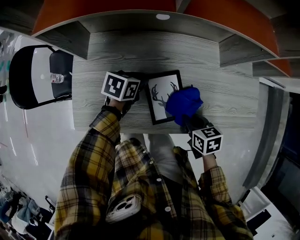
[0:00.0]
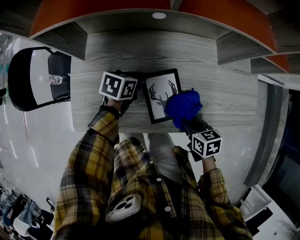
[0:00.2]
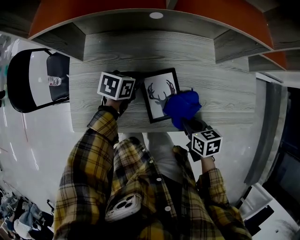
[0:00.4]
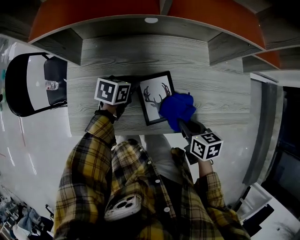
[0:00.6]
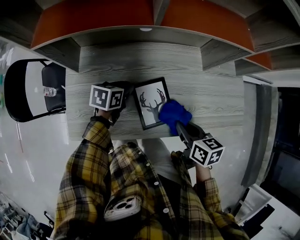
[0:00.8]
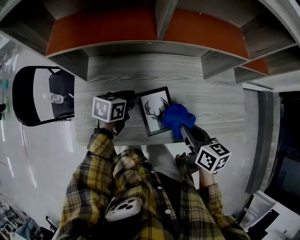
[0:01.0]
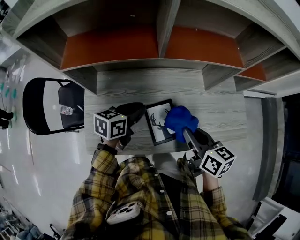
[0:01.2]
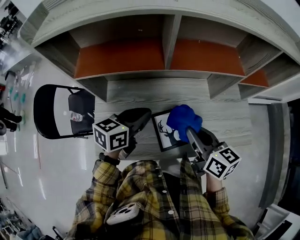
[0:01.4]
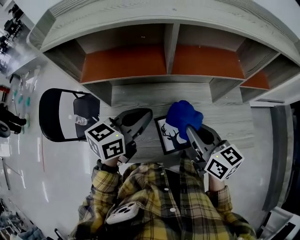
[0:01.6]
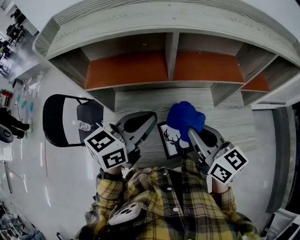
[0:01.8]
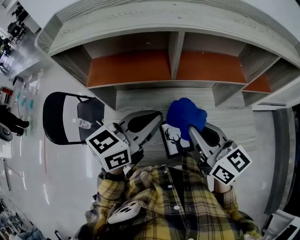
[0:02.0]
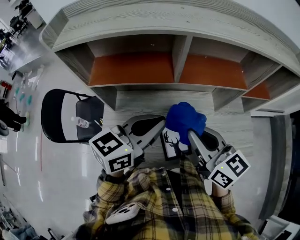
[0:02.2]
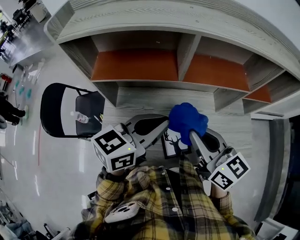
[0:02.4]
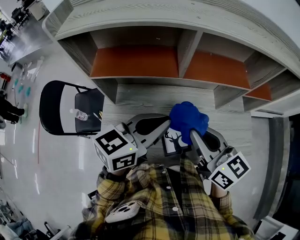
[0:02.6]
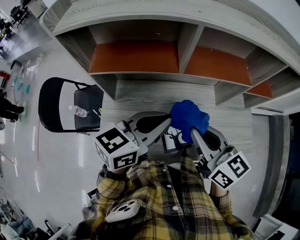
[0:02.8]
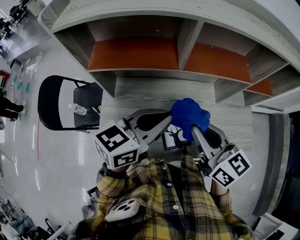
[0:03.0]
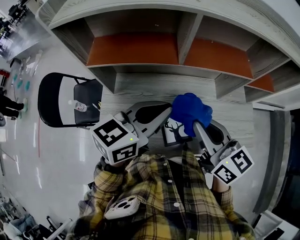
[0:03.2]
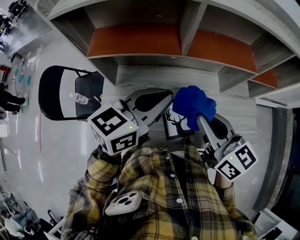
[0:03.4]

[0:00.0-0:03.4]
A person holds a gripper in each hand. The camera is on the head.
0:00.0 to 0:01.6: The two grippers go approximately 30 cm upward. The right gripper tips its fingers upward by approximately 40 degrees. The left gripper angles its fingers upward, by some 30 degrees, and closes up.
0:01.6 to 0:03.4: The left gripper ends up some 5 cm from where it was.

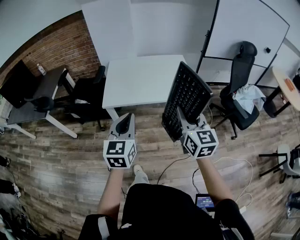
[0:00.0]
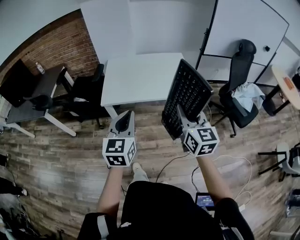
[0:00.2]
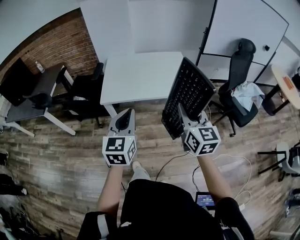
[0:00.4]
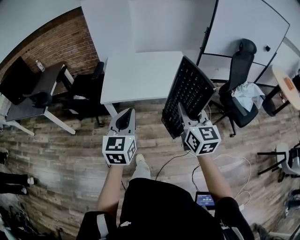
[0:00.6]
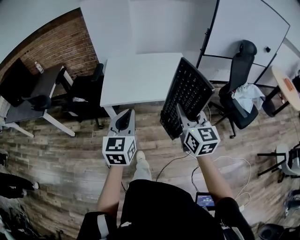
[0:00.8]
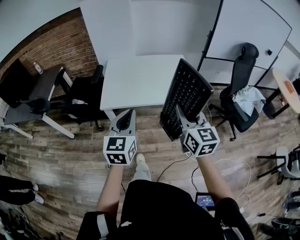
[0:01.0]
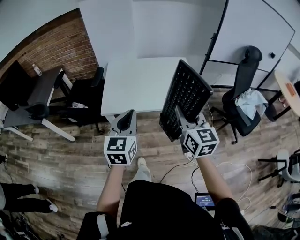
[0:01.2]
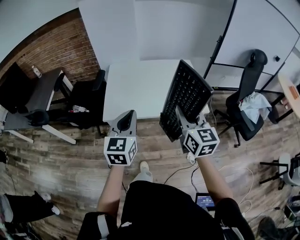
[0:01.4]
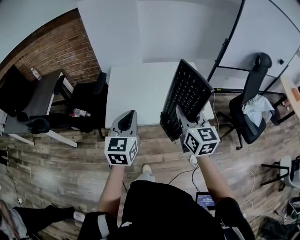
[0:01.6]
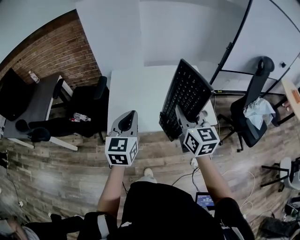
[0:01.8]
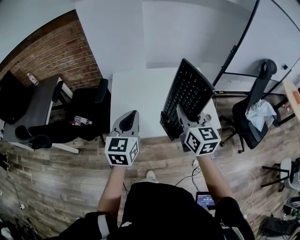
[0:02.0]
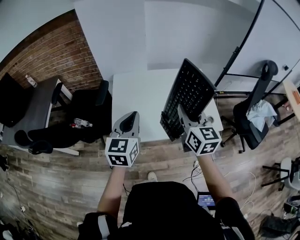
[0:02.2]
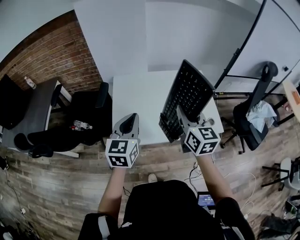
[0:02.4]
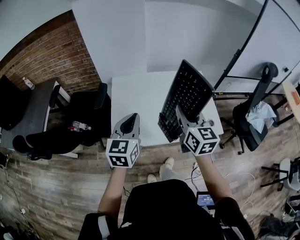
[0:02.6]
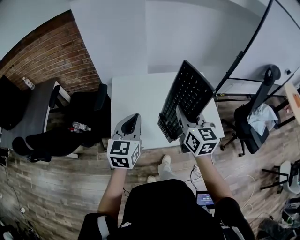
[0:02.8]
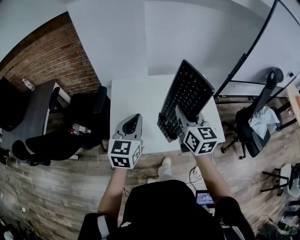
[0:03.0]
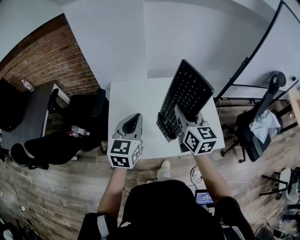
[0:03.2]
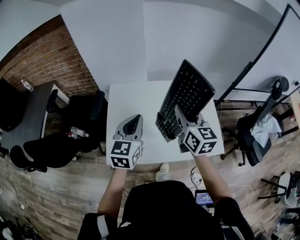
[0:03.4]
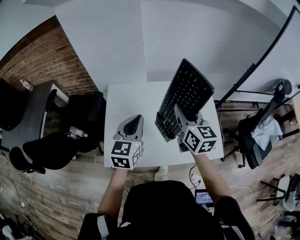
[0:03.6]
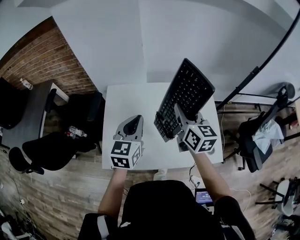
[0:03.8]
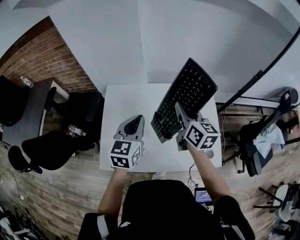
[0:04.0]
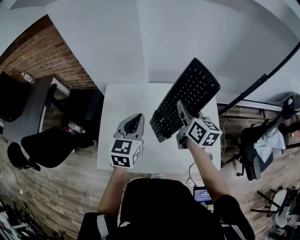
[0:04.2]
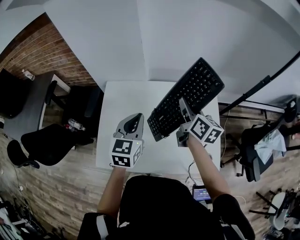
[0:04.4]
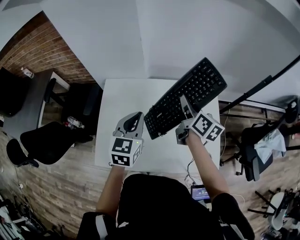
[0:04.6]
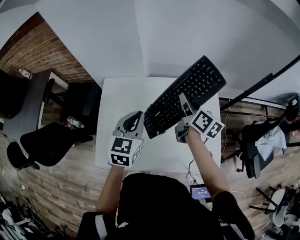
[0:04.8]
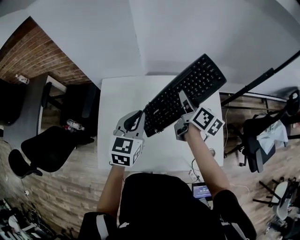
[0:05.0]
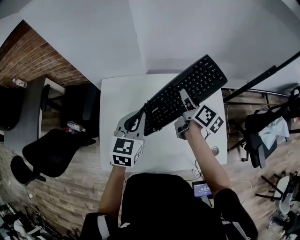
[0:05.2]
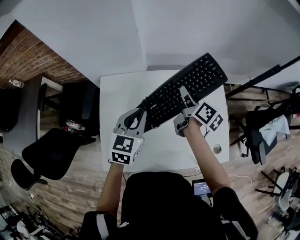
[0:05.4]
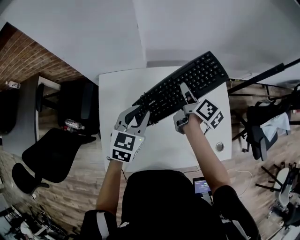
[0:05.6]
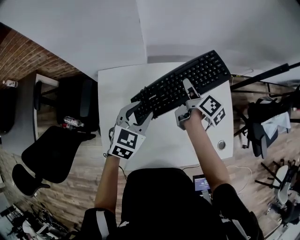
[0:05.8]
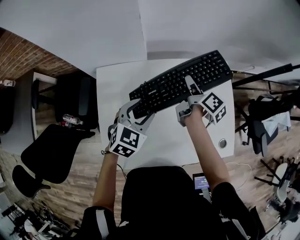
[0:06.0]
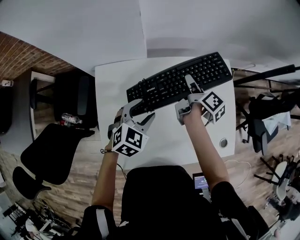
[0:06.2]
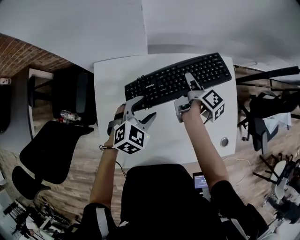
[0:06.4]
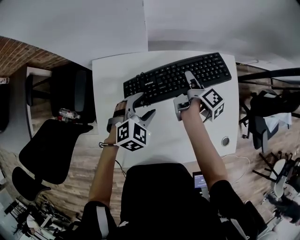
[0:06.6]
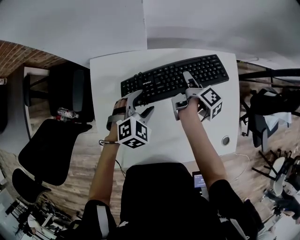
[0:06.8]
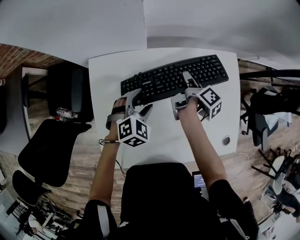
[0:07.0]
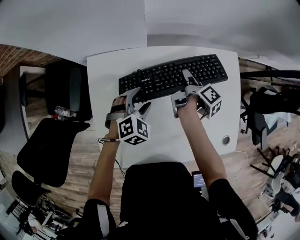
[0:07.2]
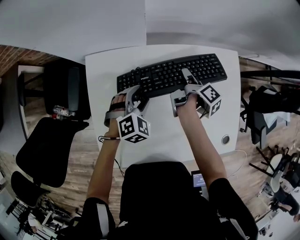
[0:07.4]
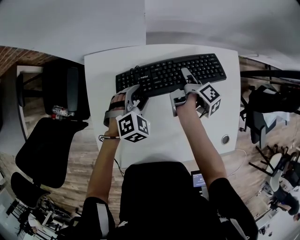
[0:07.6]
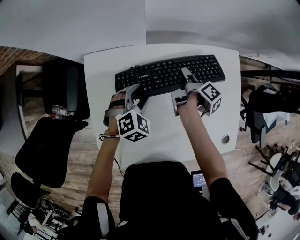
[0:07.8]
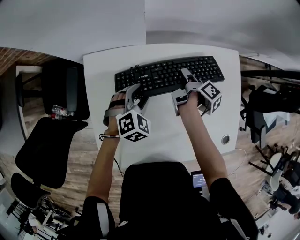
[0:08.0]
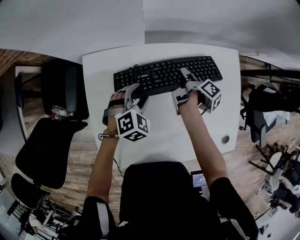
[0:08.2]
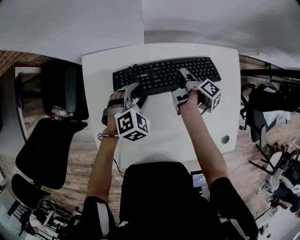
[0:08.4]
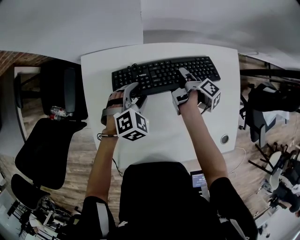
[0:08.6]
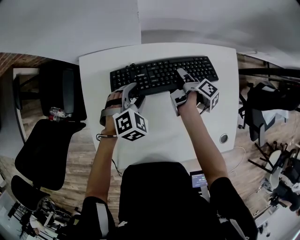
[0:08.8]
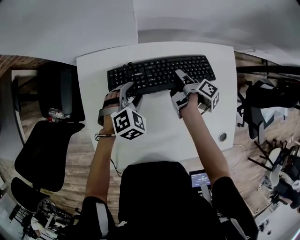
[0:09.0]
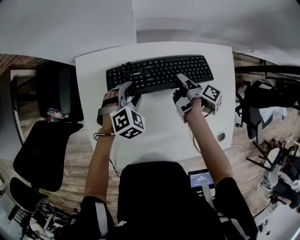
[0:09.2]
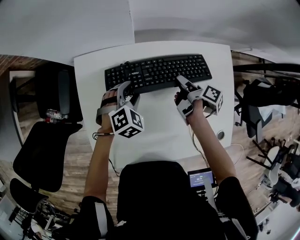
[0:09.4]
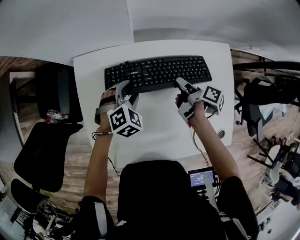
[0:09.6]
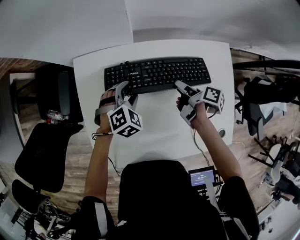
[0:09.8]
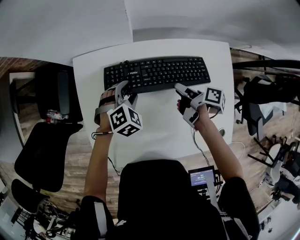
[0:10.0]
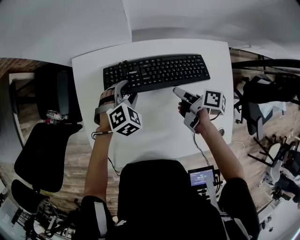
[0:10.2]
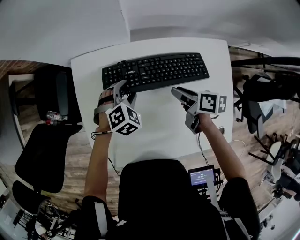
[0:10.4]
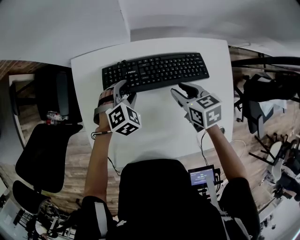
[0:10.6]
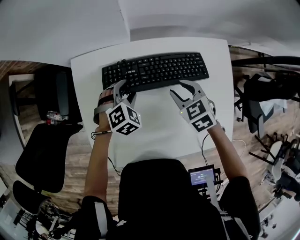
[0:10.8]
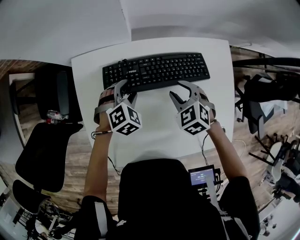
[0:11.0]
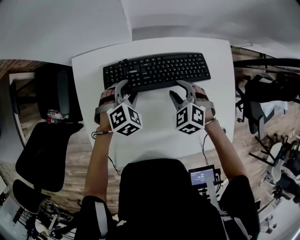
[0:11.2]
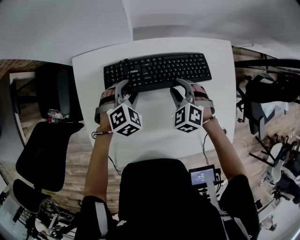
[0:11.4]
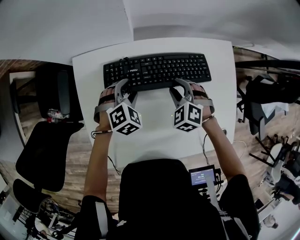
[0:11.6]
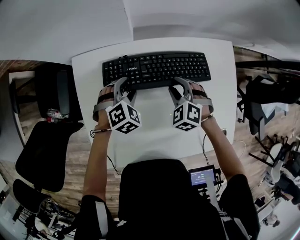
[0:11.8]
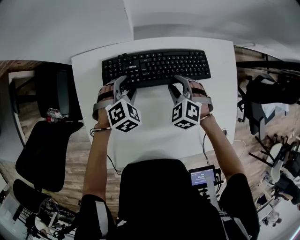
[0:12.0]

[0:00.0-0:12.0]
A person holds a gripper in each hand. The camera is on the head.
0:00.0 to 0:01.6: The two grippers go some 25 cm forward.
0:01.6 to 0:03.0: Both grippers travel together forward, roughly 20 cm.
0:03.0 to 0:04.4: Both grippers move forward and to the right, roughly 25 cm. The right gripper changes its angle by about 30 degrees.
0:04.4 to 0:06.0: The grippers both shift downward and forward by roughly 15 cm. The right gripper rotates some 40 degrees. Meanwhile the left gripper rotates roughly 40 degrees, and opens up.
0:06.0 to 0:07.6: The left gripper shifts about 15 cm downward and forward, and changes its angle by approximately 30 degrees, while the right gripper is displaced downward by approximately 10 cm, and turns by roughly 20 degrees.
0:07.6 to 0:09.0: The grippers move only a little.
0:09.0 to 0:10.4: The right gripper goes roughly 5 cm backward, and twists roughly 40 degrees counterclockwise, seen from behind.
0:10.4 to 0:12.0: The right gripper changes place by approximately 5 cm, and twists some 90 degrees counterclockwise, seen from behind.

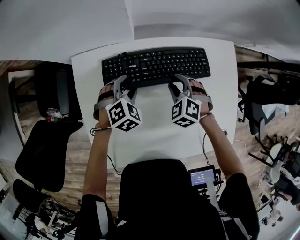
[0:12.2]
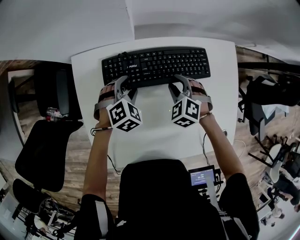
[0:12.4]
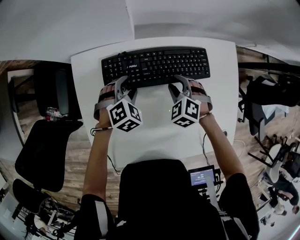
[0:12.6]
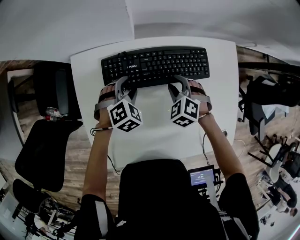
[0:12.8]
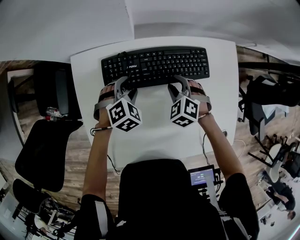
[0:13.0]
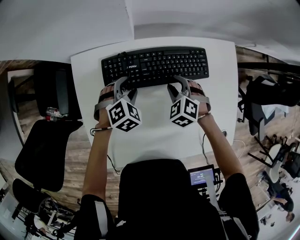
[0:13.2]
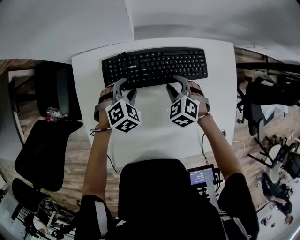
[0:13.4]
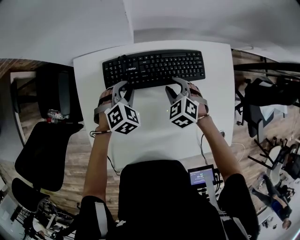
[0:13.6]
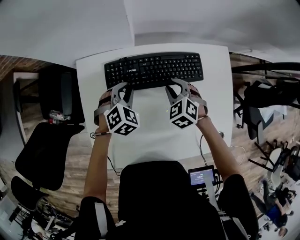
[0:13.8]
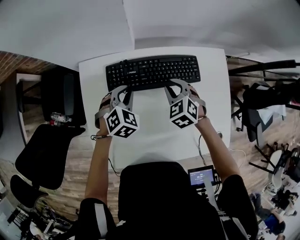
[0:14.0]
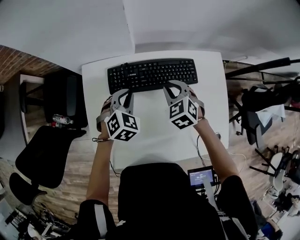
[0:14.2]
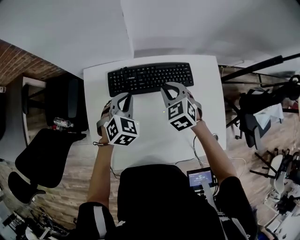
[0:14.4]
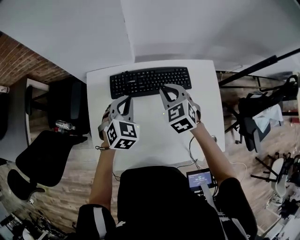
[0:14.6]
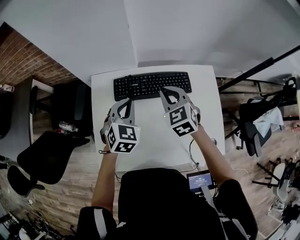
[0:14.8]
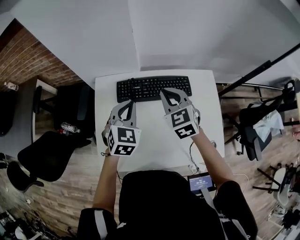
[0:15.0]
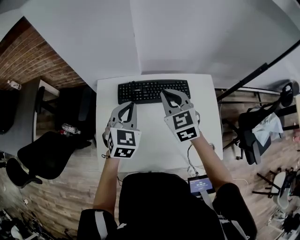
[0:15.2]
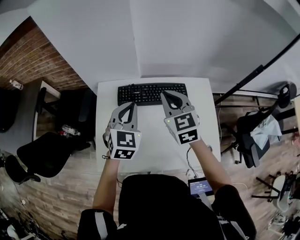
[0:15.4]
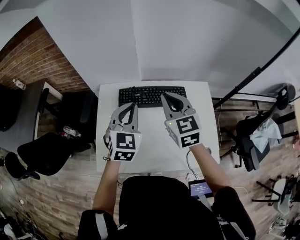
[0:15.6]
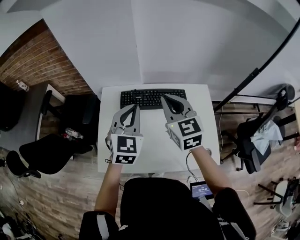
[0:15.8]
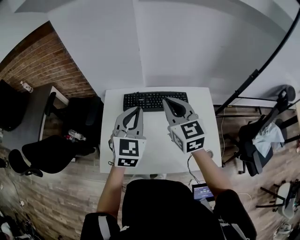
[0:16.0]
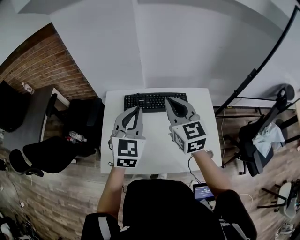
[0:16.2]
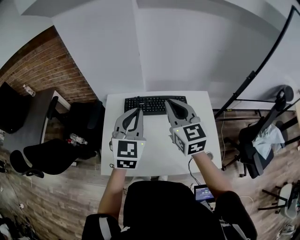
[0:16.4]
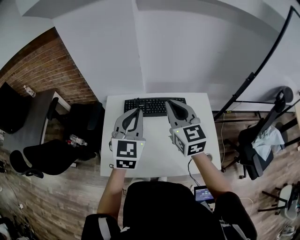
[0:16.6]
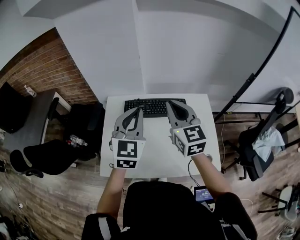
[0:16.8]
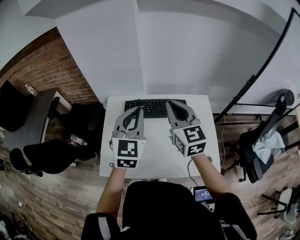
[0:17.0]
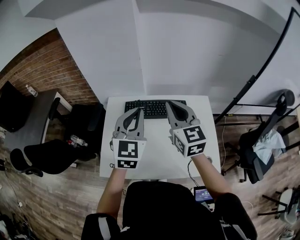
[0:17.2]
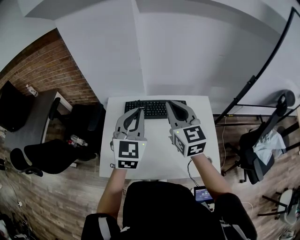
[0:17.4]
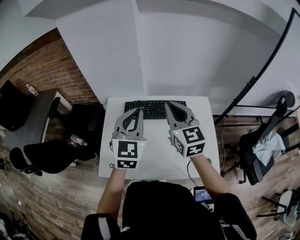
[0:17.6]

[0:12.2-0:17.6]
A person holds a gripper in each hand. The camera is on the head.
0:12.2 to 0:13.6: The left gripper closes its fingers.
0:13.6 to 0:15.0: Both grippers travel together upward, roughly 25 cm. The left gripper swivels approximately 30 degrees, and closes its fingers. The right gripper swivels roughly 30 degrees, and closes up.
0:15.0 to 0:16.2: The two grippers go approximately 15 cm upward and backward. The right gripper swivels approximately 30 degrees.
0:16.2 to 0:17.6: There are only small adjustments of the grippers.

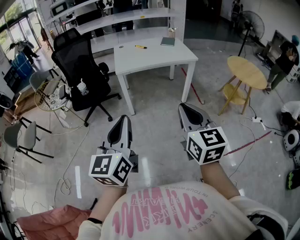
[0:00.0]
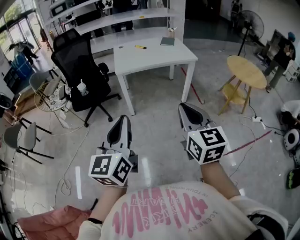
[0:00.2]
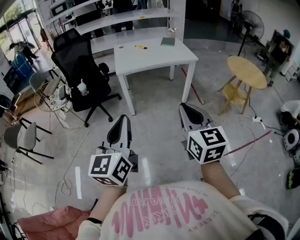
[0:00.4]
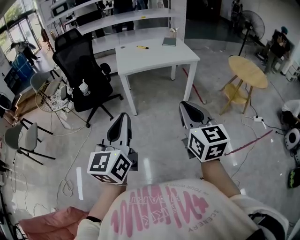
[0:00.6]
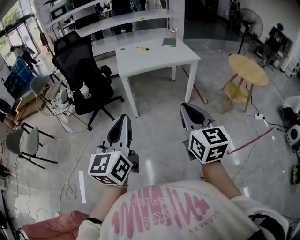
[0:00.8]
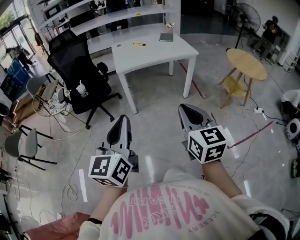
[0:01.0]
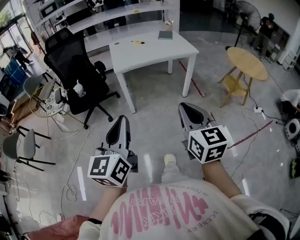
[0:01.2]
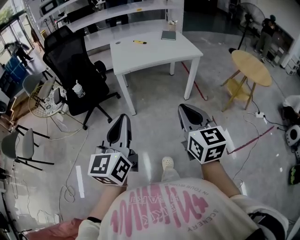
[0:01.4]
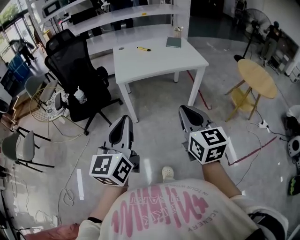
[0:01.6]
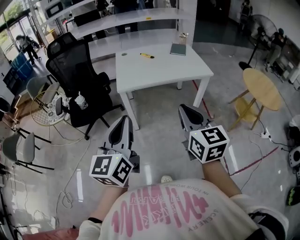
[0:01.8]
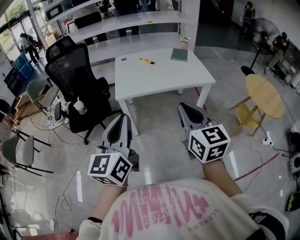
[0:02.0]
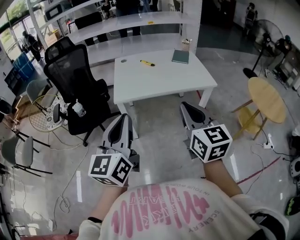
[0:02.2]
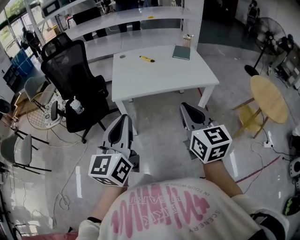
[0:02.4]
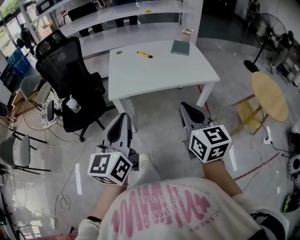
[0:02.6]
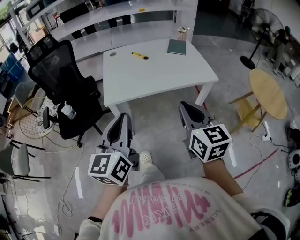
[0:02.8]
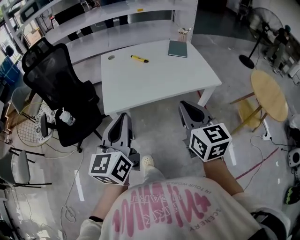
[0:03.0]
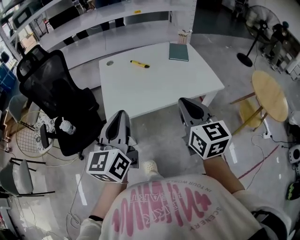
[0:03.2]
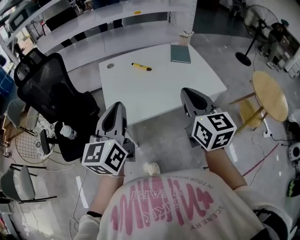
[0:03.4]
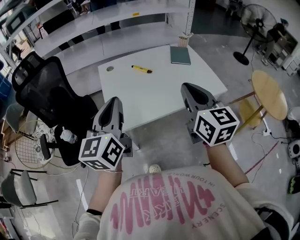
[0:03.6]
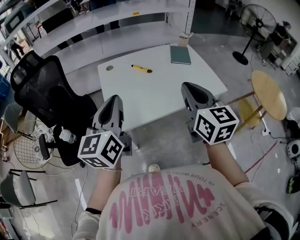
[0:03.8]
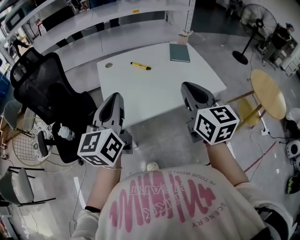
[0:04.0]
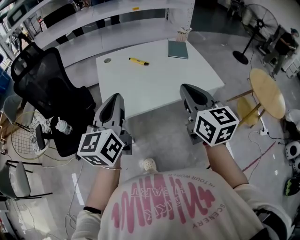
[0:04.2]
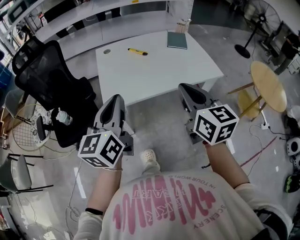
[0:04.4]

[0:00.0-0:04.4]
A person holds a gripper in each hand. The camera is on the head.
0:00.0 to 0:01.4: The left gripper goes roughly 15 cm forward and to the left, while the right gripper heads forward, downward and to the left, covering approximately 15 cm.
0:01.4 to 0:03.0: The two grippers travel together, forward, roughly 50 cm.
0:03.0 to 0:04.4: Both grippers travel together forward, approximately 5 cm.
